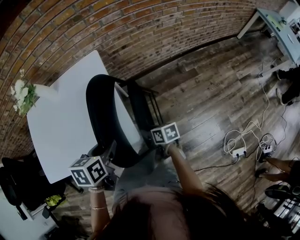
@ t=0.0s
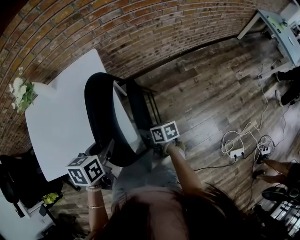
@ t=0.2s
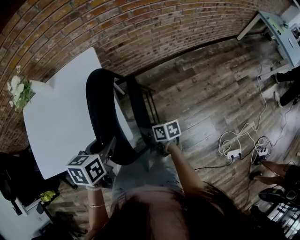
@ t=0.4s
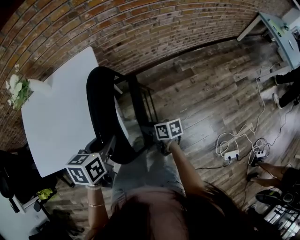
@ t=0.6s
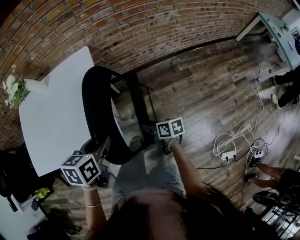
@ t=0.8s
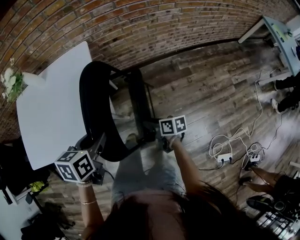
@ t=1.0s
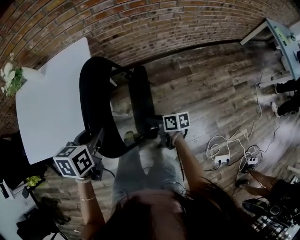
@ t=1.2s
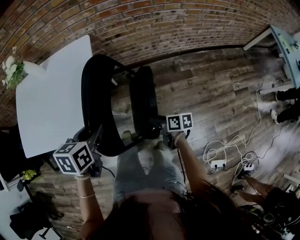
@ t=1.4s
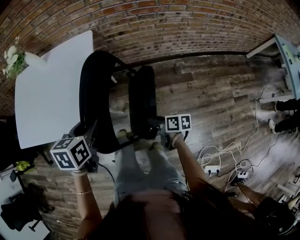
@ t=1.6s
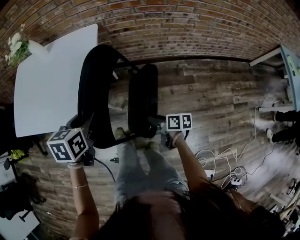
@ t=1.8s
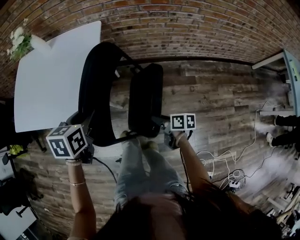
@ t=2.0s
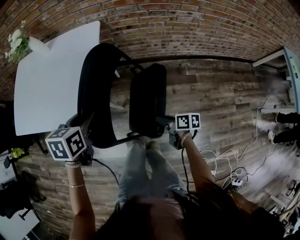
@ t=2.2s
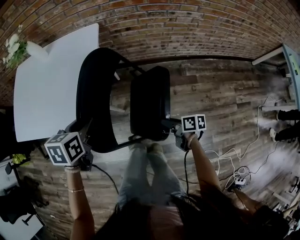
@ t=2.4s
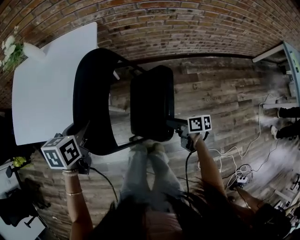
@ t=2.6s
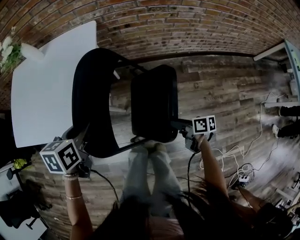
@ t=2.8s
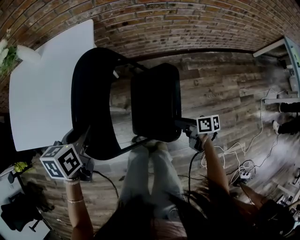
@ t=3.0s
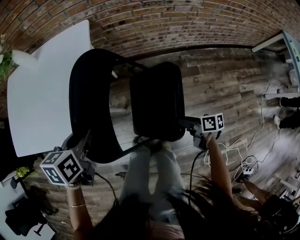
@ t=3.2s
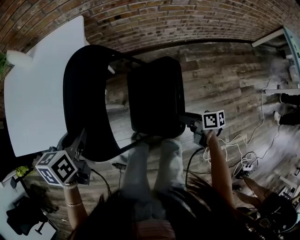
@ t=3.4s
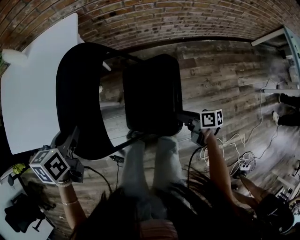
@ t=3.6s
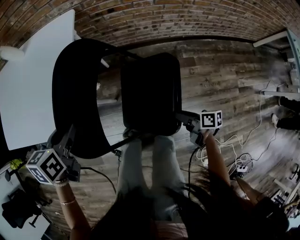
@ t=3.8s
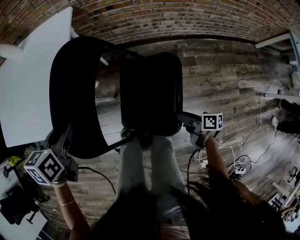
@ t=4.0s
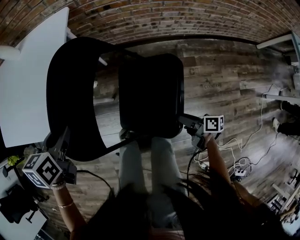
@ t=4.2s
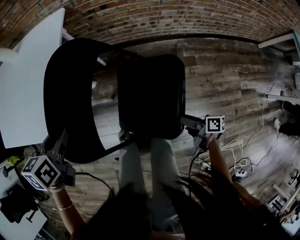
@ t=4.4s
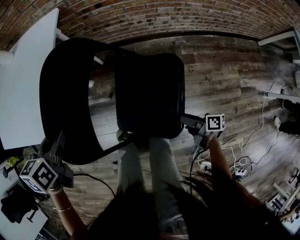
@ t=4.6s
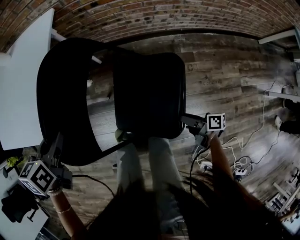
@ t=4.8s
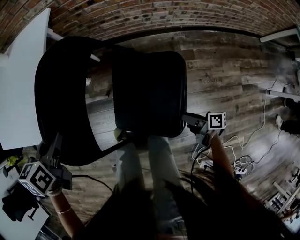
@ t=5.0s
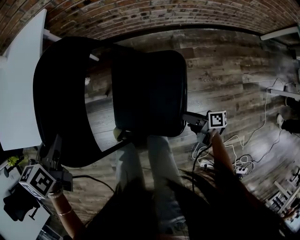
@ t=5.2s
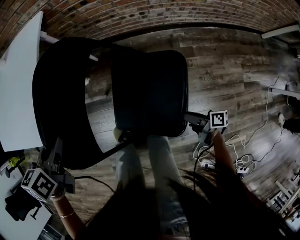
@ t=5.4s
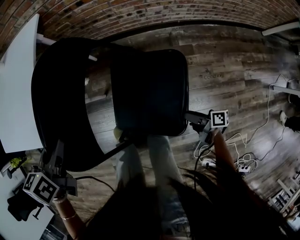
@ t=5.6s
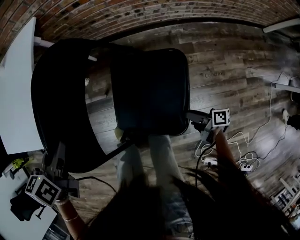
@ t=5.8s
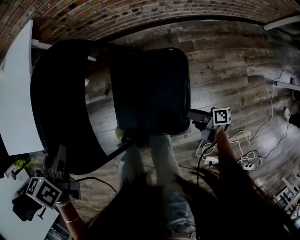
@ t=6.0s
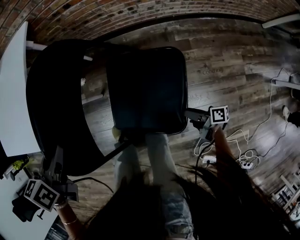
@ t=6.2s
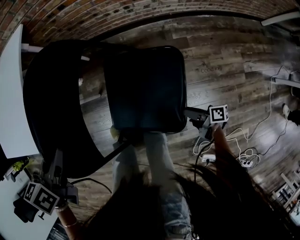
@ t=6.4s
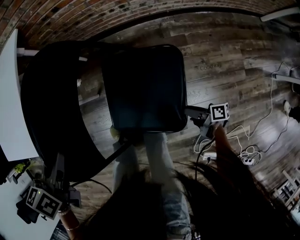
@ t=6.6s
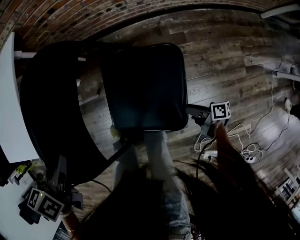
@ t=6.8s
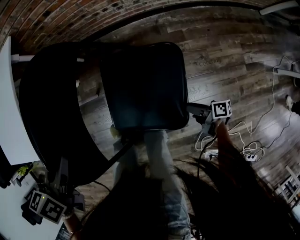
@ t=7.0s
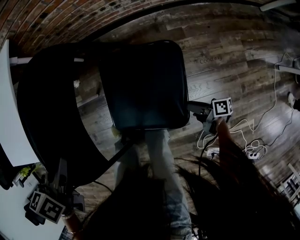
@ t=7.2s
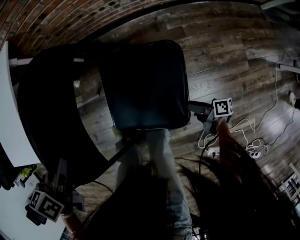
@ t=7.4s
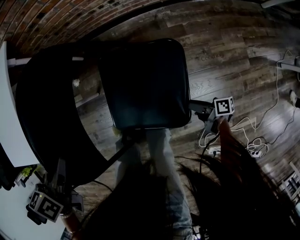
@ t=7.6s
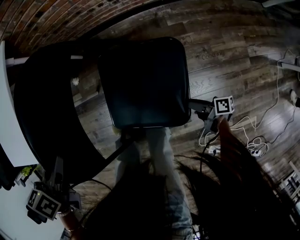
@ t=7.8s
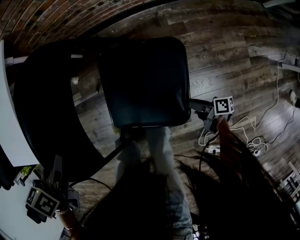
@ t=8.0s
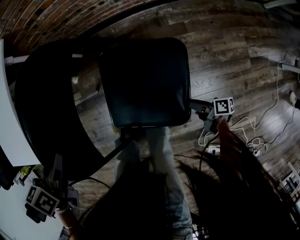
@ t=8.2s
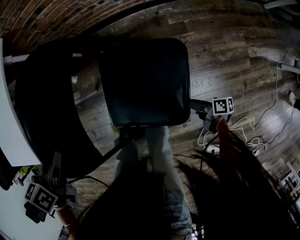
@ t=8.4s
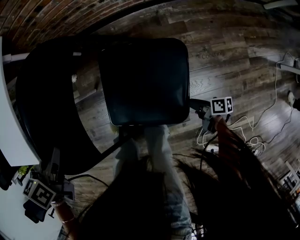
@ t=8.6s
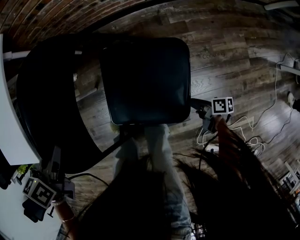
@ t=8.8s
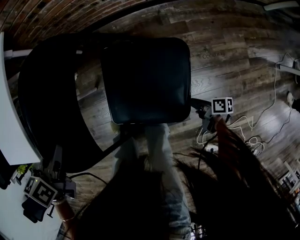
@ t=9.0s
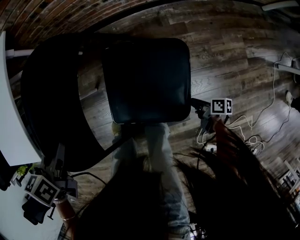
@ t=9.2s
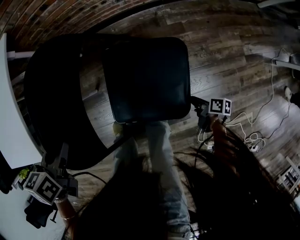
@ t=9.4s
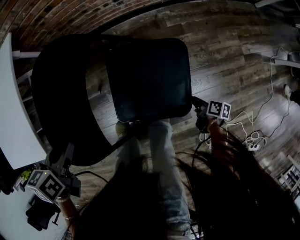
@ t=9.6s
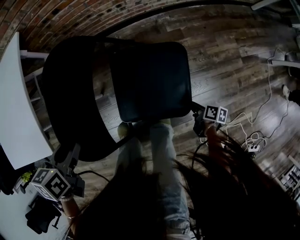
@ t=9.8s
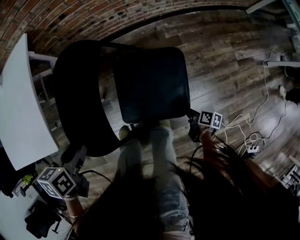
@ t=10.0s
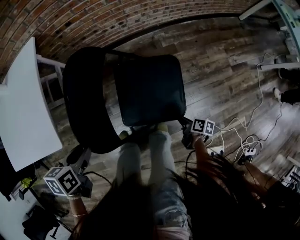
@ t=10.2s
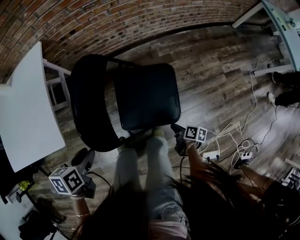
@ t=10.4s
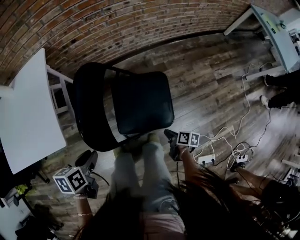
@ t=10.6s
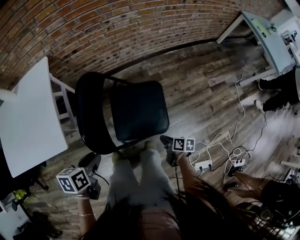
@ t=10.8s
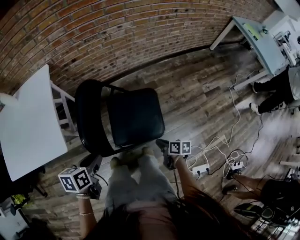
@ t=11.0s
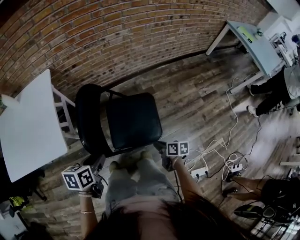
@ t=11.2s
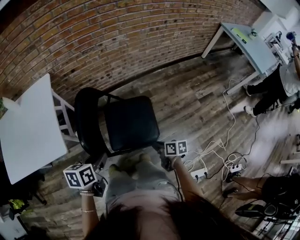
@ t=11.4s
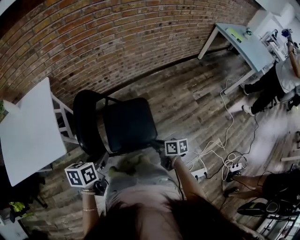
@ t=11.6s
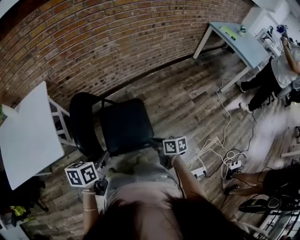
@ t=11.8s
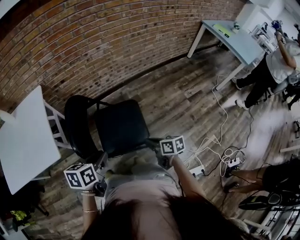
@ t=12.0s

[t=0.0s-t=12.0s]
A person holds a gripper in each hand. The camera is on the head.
t=0.0s to t=1.6s: The left gripper travels to the right by about 10 cm; the right gripper goes some 20 cm to the right.
t=1.6s to t=3.0s: The left gripper shifts by about 5 cm. The right gripper travels to the right by about 5 cm.
t=3.0s to t=4.4s: The left gripper shifts by approximately 5 cm. The right gripper heads to the right and downward, covering some 10 cm.
t=4.4s to t=6.0s: The right gripper goes approximately 10 cm to the right and downward, while the left gripper is displaced to the right and backward by about 10 cm.
t=6.0s to t=7.6s: The left gripper shifts approximately 5 cm to the right, while the right gripper heads downward and to the right, covering some 10 cm.
t=7.6s to t=9.0s: The left gripper changes place by some 5 cm.
t=9.0s to t=10.4s: The left gripper travels backward by about 10 cm. Meanwhile the right gripper travels upward, to the left and backward by some 15 cm, changes its angle by approximately 30 degrees, and closes its fingers.
t=10.4s to t=12.0s: The left gripper shifts some 20 cm to the right and upward, and rotates approximately 20 degrees; the right gripper moves upward, about 25 cm, and turns by about 30 degrees.

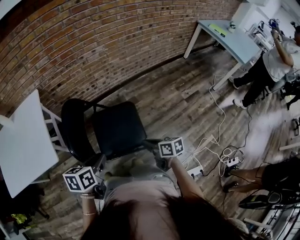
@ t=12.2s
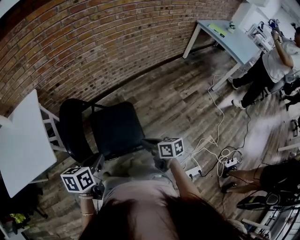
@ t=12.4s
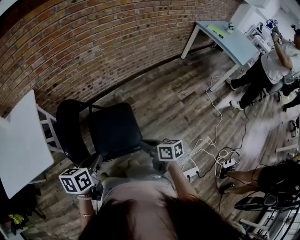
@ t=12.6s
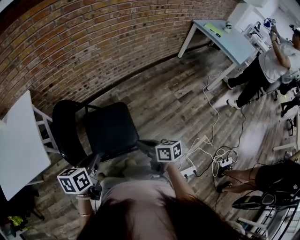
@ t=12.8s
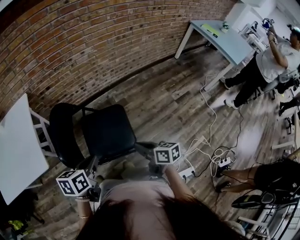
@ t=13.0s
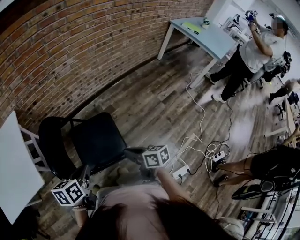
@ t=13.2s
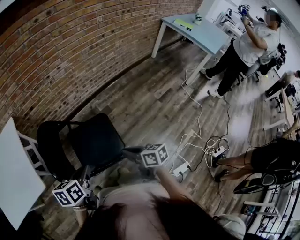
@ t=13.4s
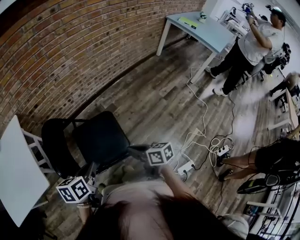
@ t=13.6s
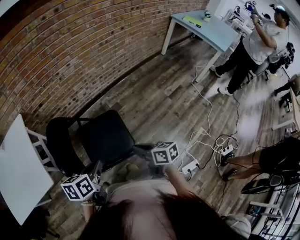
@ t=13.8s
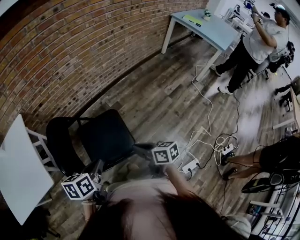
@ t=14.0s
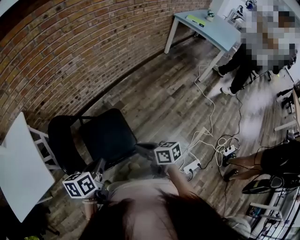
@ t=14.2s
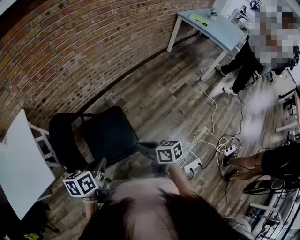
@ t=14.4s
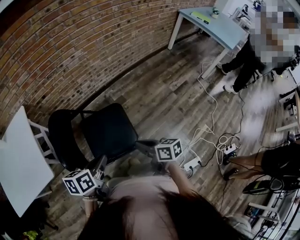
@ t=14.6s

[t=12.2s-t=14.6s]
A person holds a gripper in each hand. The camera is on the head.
t=12.2s to t=13.4s: The right gripper moves upward, approximately 5 cm.
t=13.4s to t=14.6s: There are only small adjustments of the grippers.

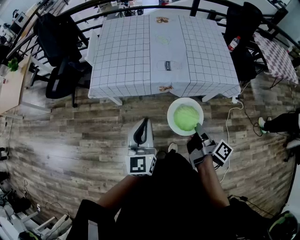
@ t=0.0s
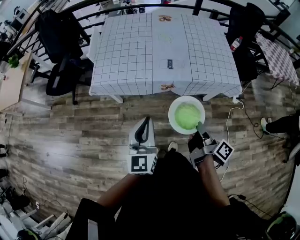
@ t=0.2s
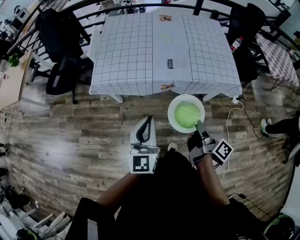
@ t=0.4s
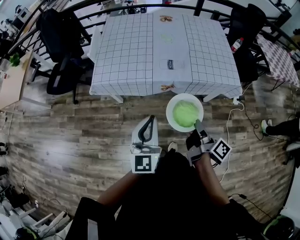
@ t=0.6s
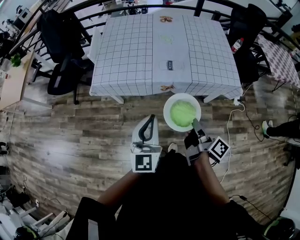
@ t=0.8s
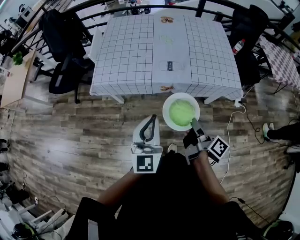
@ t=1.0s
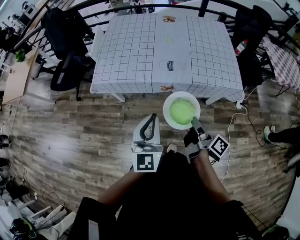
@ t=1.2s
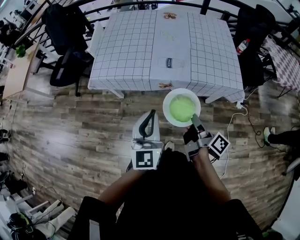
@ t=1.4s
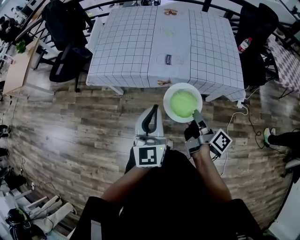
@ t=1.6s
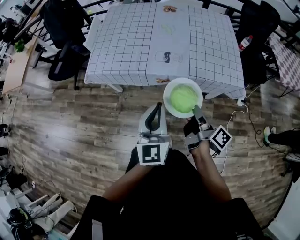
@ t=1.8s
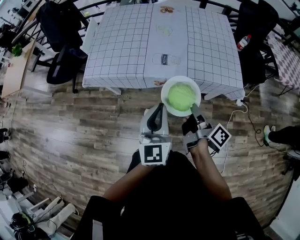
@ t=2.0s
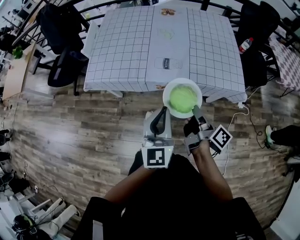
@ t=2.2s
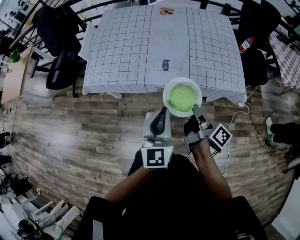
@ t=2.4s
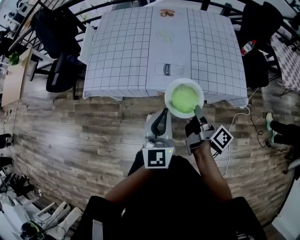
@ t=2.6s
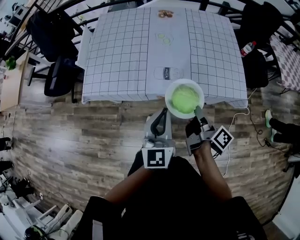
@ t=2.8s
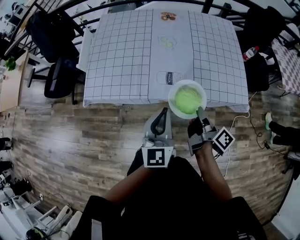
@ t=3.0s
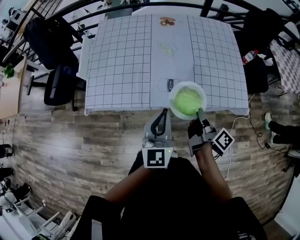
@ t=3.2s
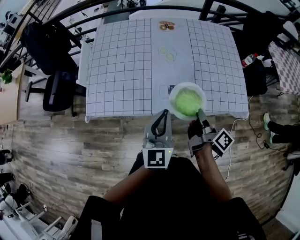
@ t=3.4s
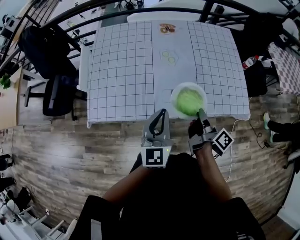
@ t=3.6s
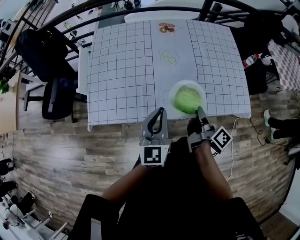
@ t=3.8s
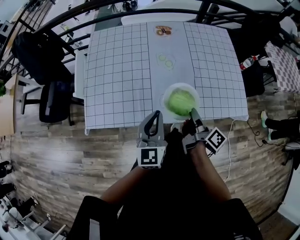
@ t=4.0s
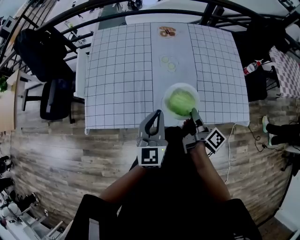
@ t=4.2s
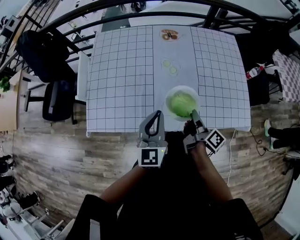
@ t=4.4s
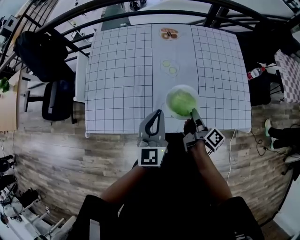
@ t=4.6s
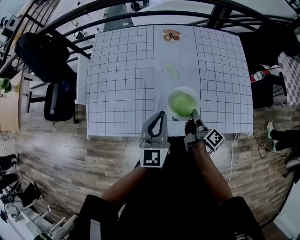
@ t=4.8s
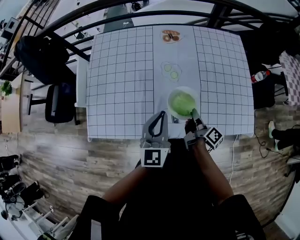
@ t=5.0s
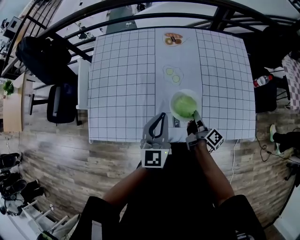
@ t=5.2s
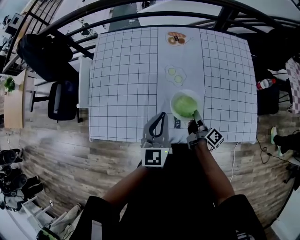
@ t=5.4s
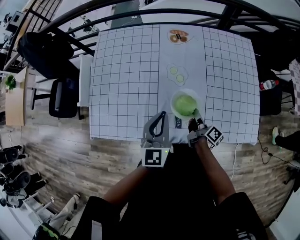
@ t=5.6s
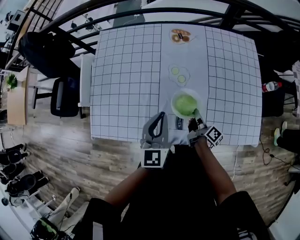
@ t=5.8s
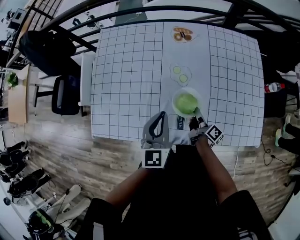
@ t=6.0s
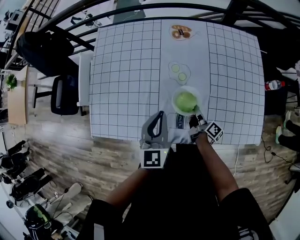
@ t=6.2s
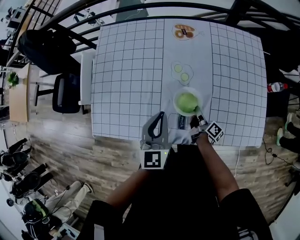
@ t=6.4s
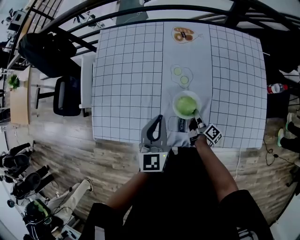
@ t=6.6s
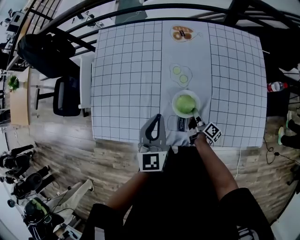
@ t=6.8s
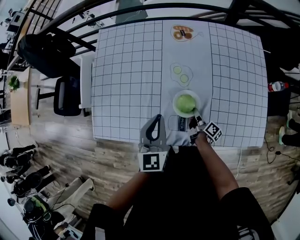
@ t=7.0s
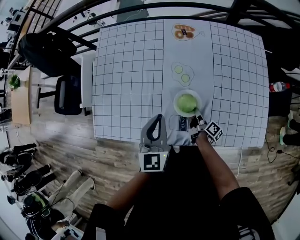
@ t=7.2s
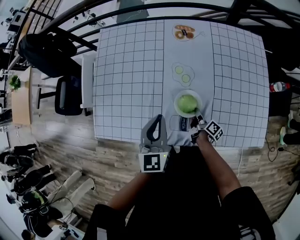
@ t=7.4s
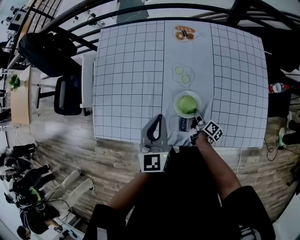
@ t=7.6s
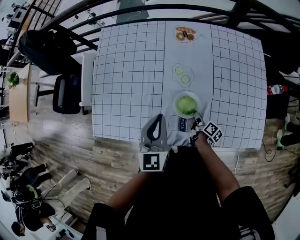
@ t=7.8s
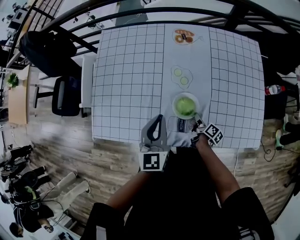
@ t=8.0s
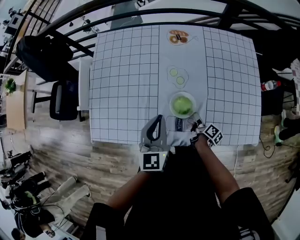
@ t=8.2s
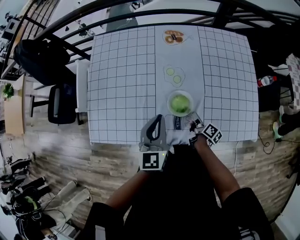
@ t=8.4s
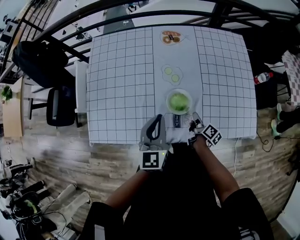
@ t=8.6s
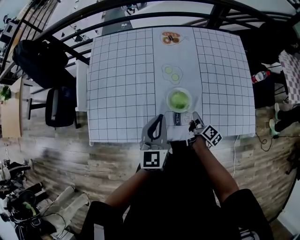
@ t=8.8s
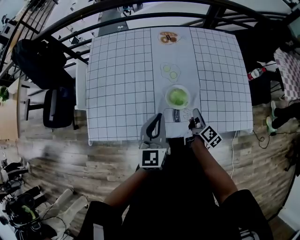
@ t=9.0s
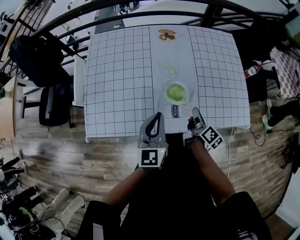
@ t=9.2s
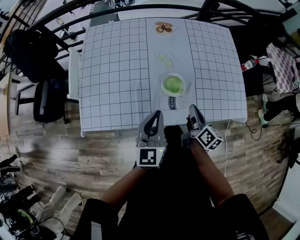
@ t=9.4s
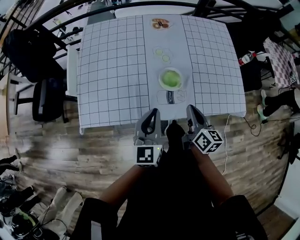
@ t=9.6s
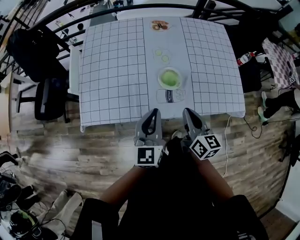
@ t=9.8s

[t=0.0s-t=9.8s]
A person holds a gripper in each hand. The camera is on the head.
t=0.0s to t=1.4s: The right gripper heads forward, covering about 5 cm. The left gripper goes approximately 10 cm to the right.
t=1.4s to t=2.8s: The left gripper moves forward and to the right, approximately 15 cm; the right gripper shifts roughly 15 cm forward.
t=2.8s to t=4.2s: The left gripper shifts about 20 cm forward and to the left; the right gripper travels forward by some 20 cm.
t=4.2s to t=5.6s: The right gripper travels downward and forward by approximately 20 cm. The left gripper moves forward, some 10 cm.
t=5.6s to t=7.0s: The right gripper is displaced downward by roughly 10 cm.
t=7.0s to t=8.4s: The right gripper changes place by about 5 cm.
t=8.4s to t=9.8s: The left gripper moves backward, about 15 cm. The right gripper travels upward and backward by about 30 cm, and twists about 50 degrees counterclockwise, seen from behind.
